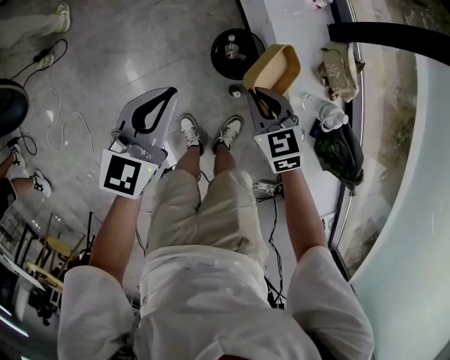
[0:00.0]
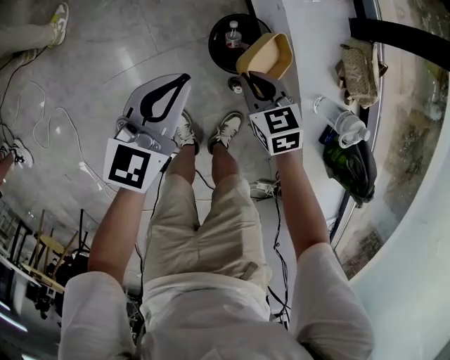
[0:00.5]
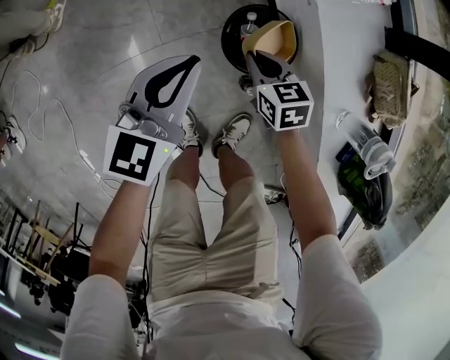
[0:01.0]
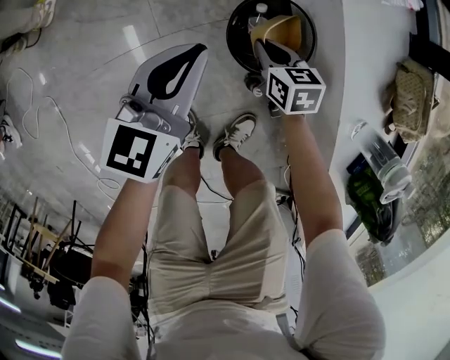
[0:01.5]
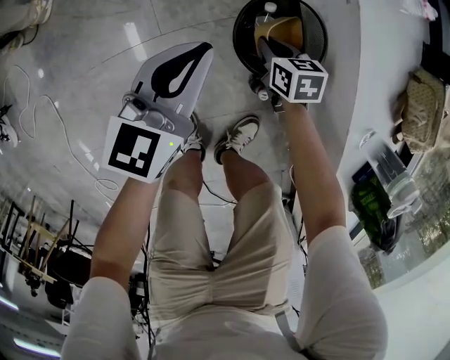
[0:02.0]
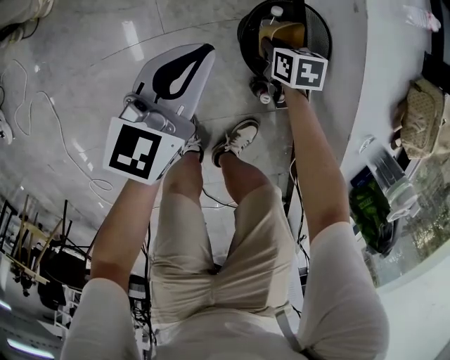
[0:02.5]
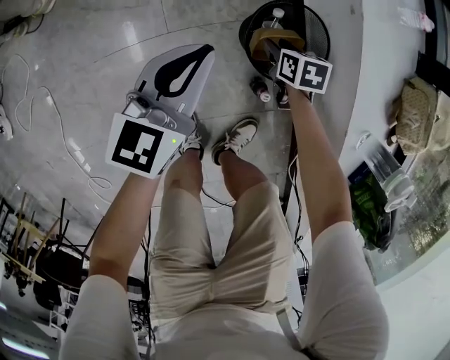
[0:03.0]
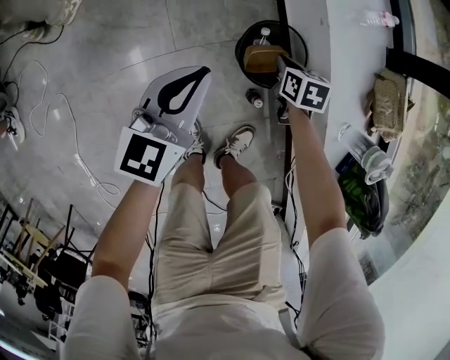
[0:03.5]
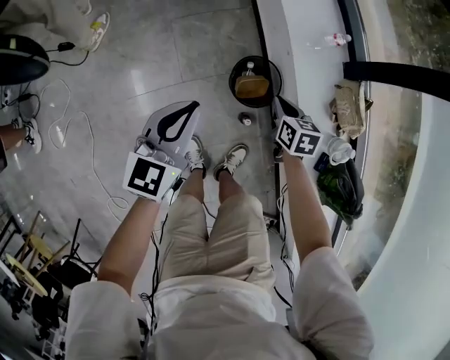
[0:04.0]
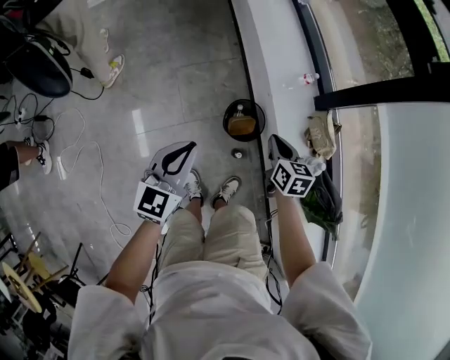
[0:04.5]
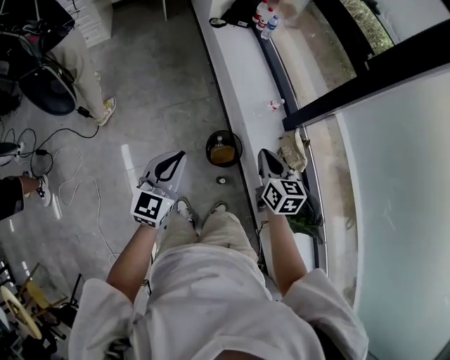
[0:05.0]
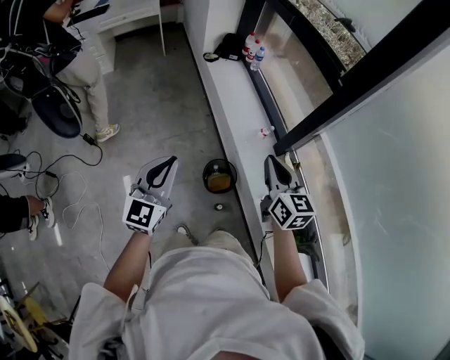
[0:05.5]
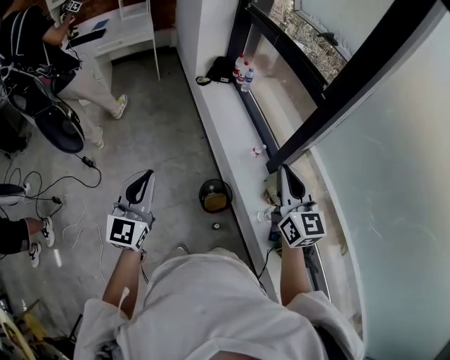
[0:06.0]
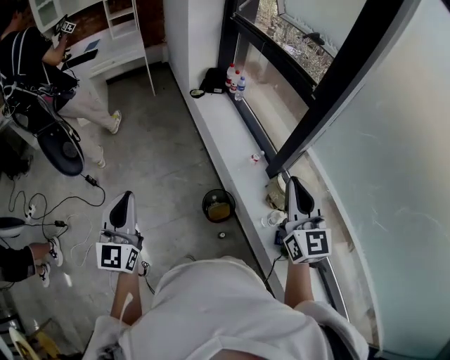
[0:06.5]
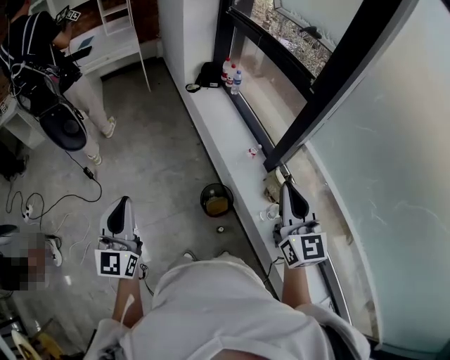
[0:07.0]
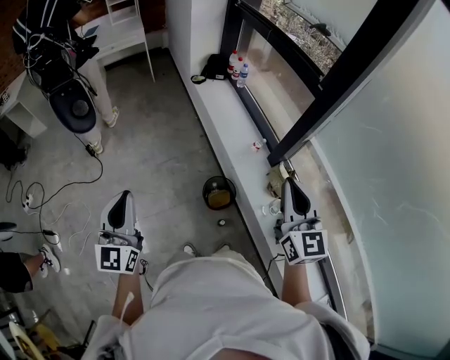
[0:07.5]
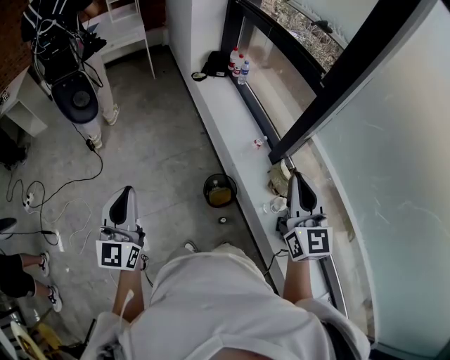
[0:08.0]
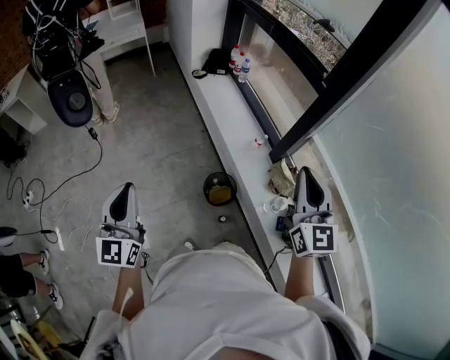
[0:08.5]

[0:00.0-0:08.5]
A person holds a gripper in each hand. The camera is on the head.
0.0 to 2.0 s: The two grippers go about 35 cm downward. The right gripper swivels about 30 degrees.
2.0 to 4.0 s: The grippers both shift upward by some 30 cm. The right gripper opens, then closes once more.
4.0 to 6.5 s: The right gripper is displaced upward by some 60 cm, and points its fingers roughly 50 degrees further upward, while the left gripper is displaced upward by roughly 40 cm, and changes its angle by roughly 30 degrees.
6.5 to 8.5 s: The grippers make only small movements.

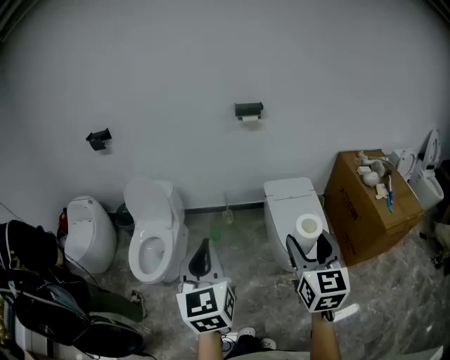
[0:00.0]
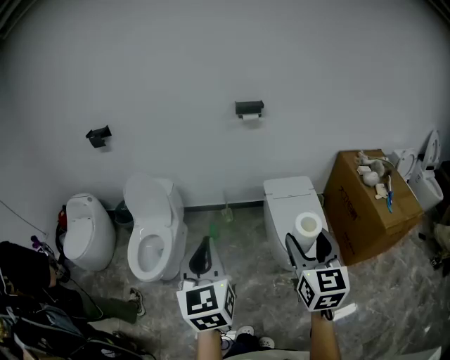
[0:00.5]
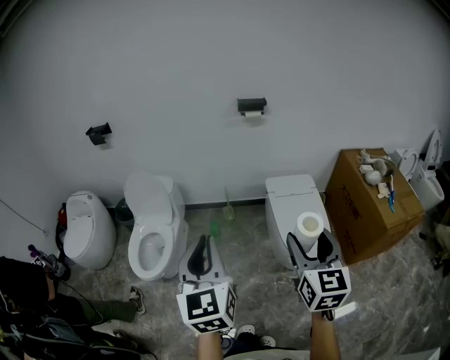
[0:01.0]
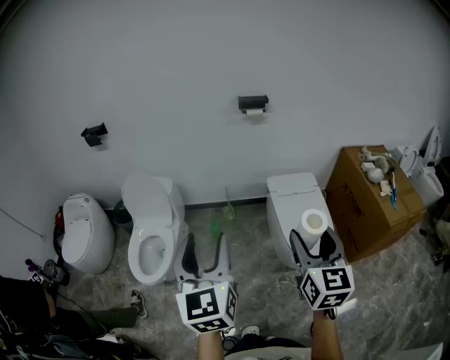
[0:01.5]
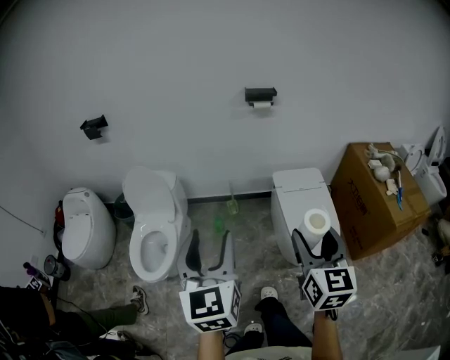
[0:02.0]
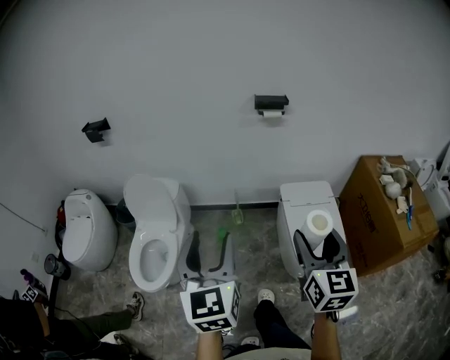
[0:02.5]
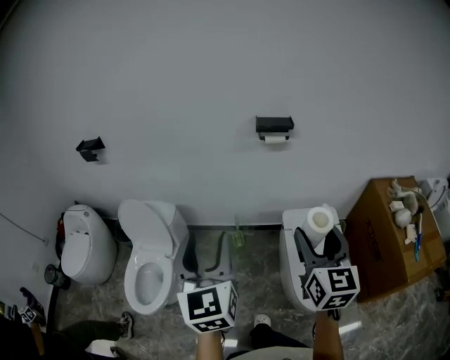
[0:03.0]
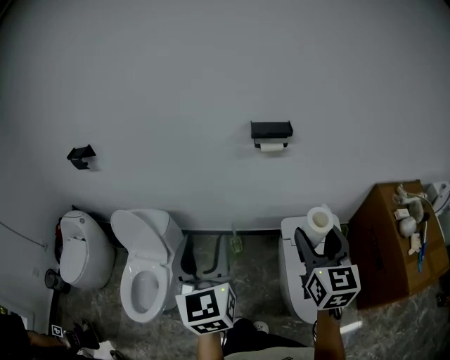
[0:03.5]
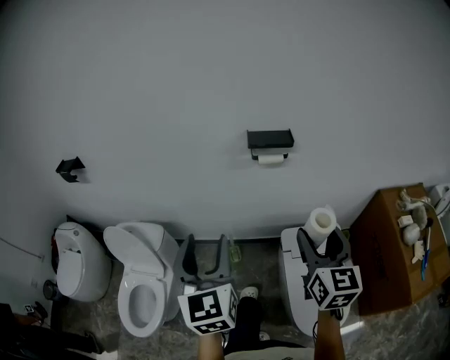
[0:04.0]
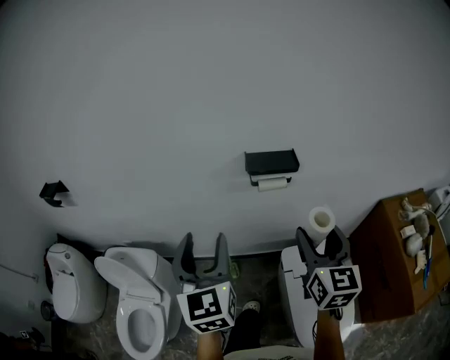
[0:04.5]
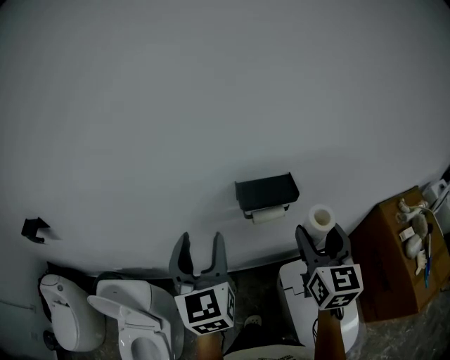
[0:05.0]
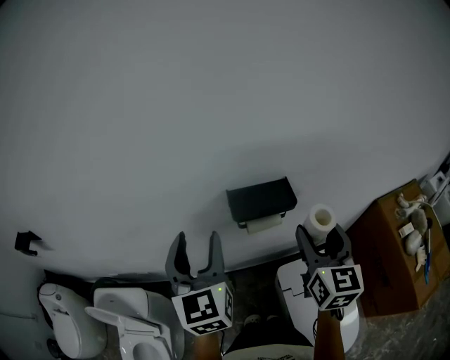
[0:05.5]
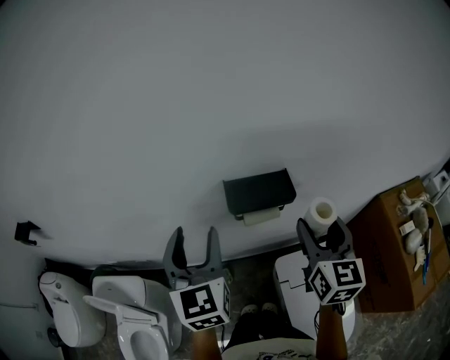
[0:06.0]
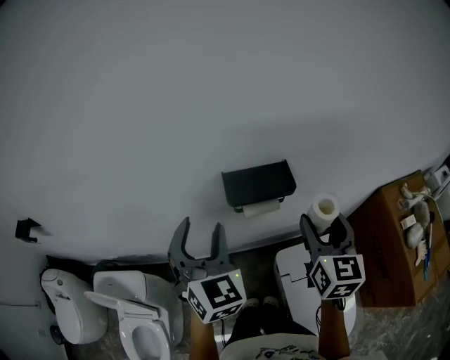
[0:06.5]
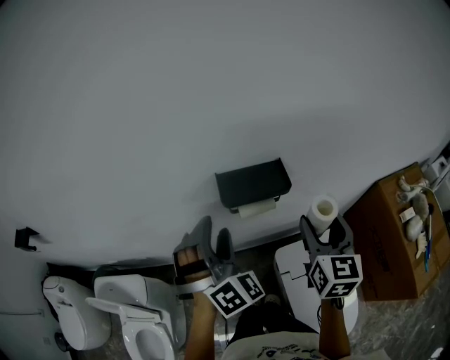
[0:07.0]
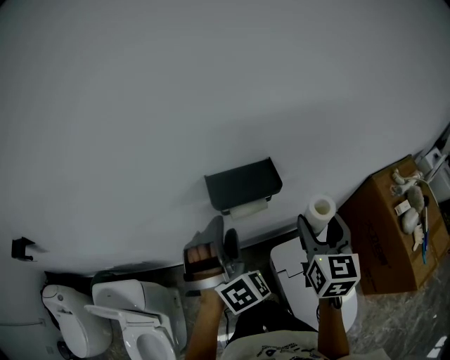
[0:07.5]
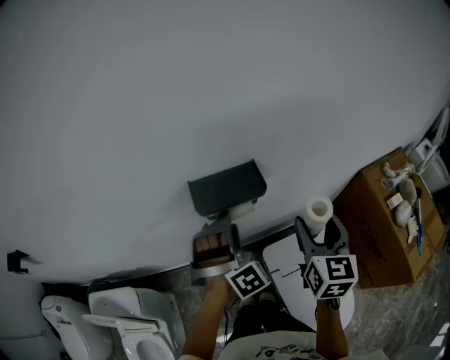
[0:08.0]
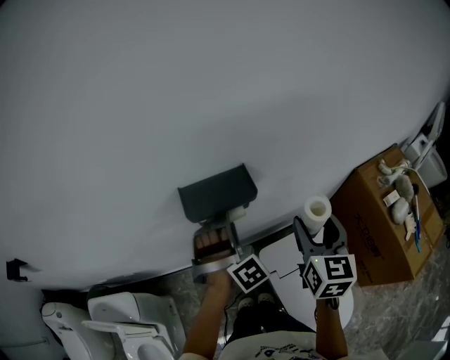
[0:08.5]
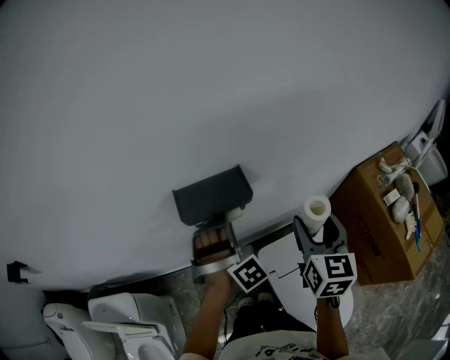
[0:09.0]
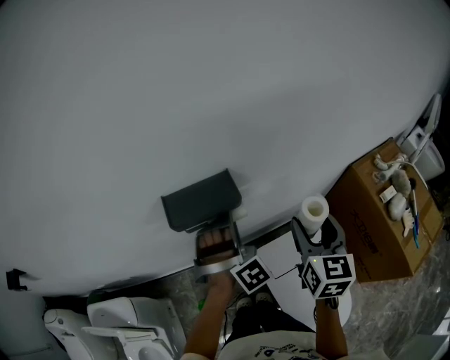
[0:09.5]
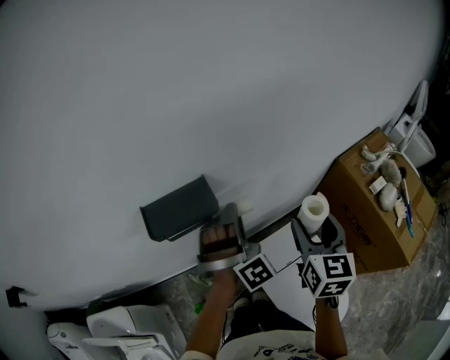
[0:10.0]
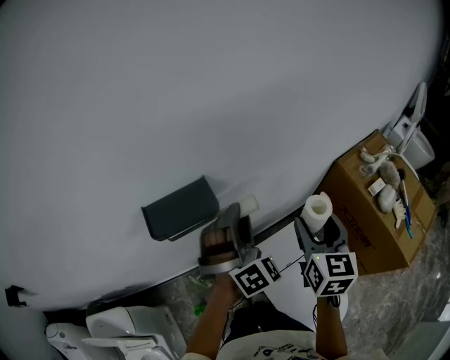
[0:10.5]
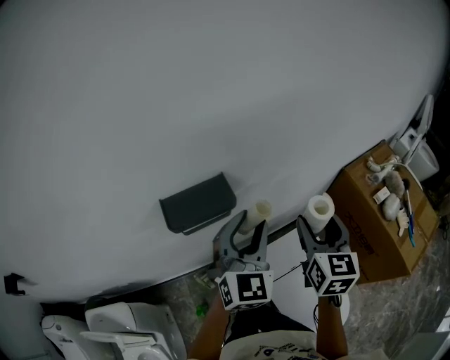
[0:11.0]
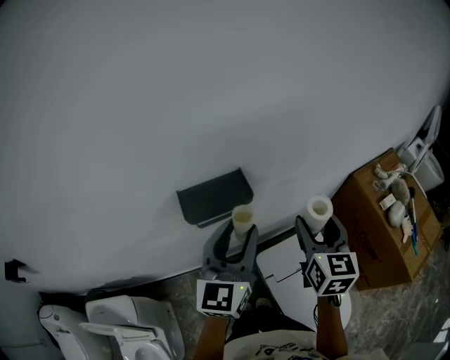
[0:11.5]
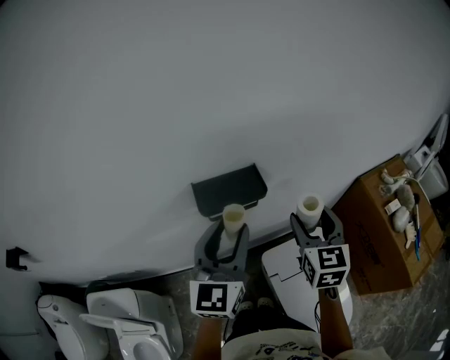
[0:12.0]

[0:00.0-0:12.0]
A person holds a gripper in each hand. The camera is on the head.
0.0 to 2.0 s: The grippers both shift forward by roughly 10 cm. The left gripper opens.
2.0 to 4.0 s: Both grippers are carried forward, roughly 50 cm.
4.0 to 6.0 s: Both grippers travel together forward, about 30 cm.
6.0 to 8.0 s: The left gripper heads to the right and downward, covering roughly 20 cm, and rotates around the line of its fingers by approximately 80 degrees, clockwise from behind, while the right gripper goes some 5 cm to the right.
8.0 to 10.0 s: Both grippers move to the right, about 10 cm.
10.0 to 12.0 s: The right gripper goes some 10 cm to the left, while the left gripper is displaced to the left, backward and upward by approximately 20 cm, and rotates around the line of its fingers by some 80 degrees, counterclockwise from behind.

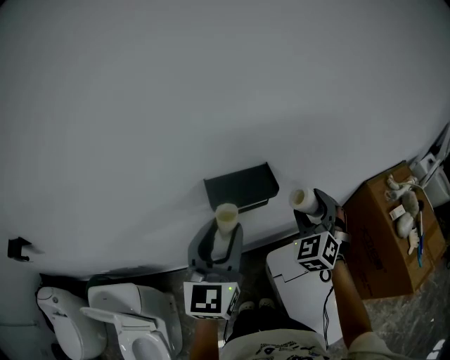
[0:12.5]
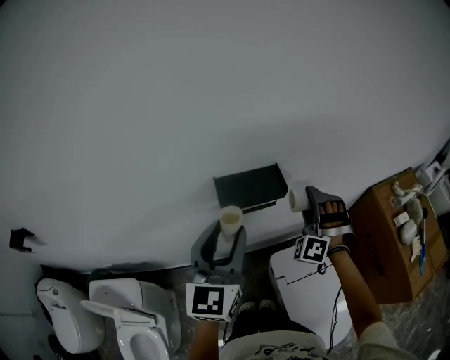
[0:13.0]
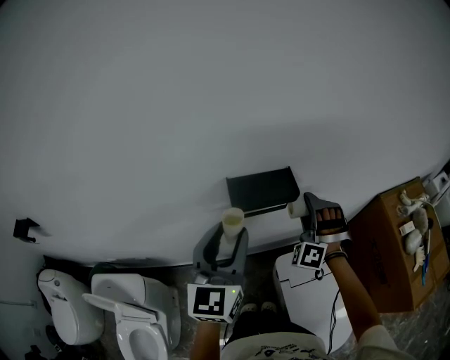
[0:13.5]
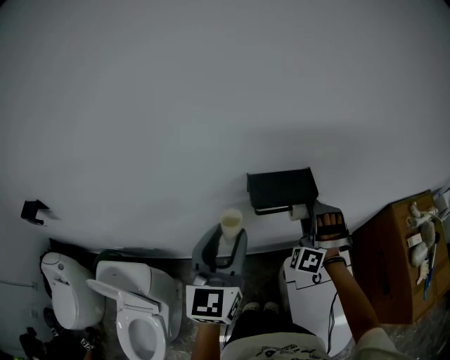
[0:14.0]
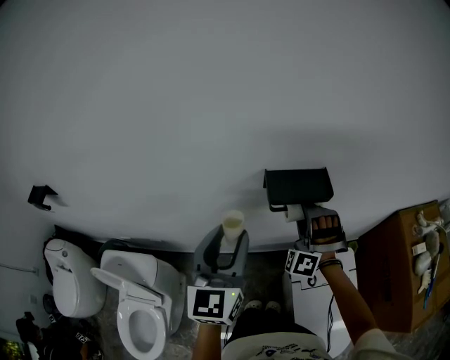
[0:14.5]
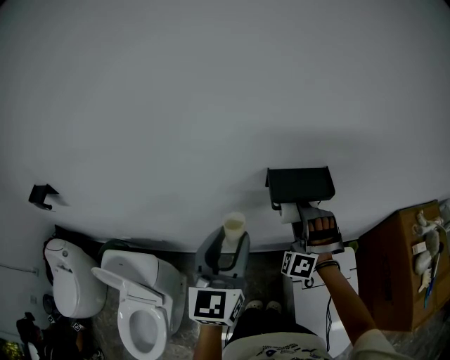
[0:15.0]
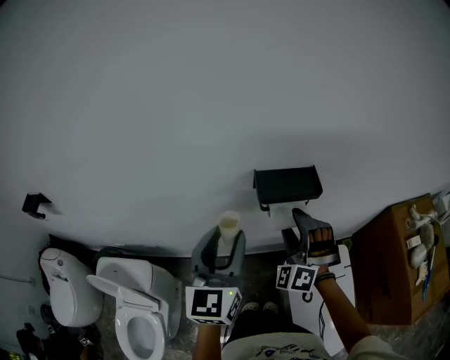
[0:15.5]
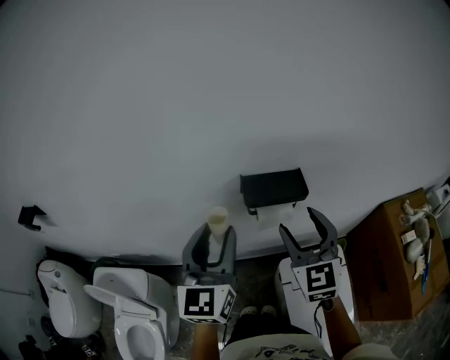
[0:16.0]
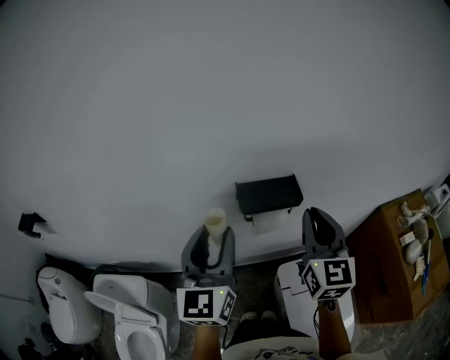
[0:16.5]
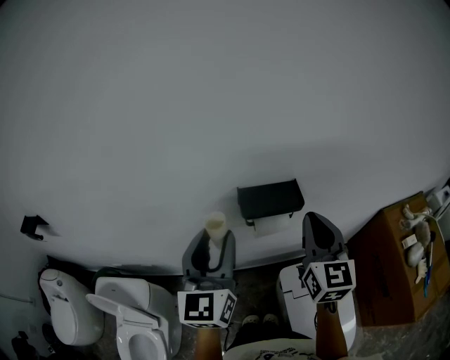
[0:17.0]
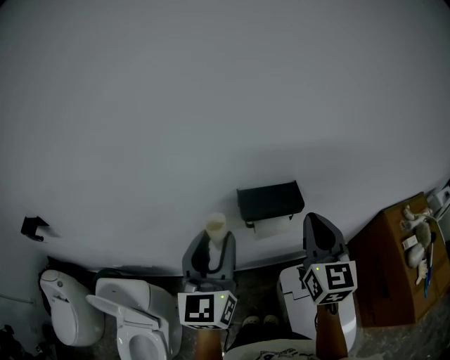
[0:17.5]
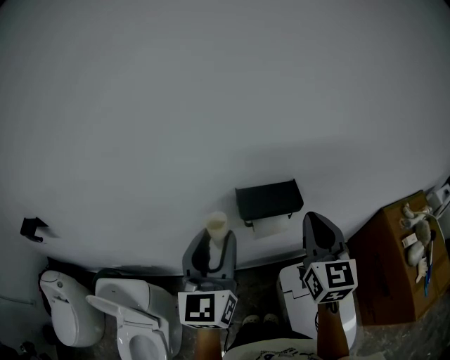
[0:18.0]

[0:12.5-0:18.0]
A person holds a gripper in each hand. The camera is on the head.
12.5 to 14.5 s: The left gripper moves to the left and backward, roughly 15 cm. Meanwhile the right gripper moves to the left, roughly 20 cm, and twists approximately 40 degrees counterclockwise, seen from behind.
14.5 to 16.0 s: The right gripper is displaced upward and backward by approximately 15 cm, and rolls clockwise, seen from behind, by some 70 degrees.
16.0 to 18.0 s: The right gripper ends up roughly 5 cm from where it was, changes its angle by some 20 degrees, and closes.

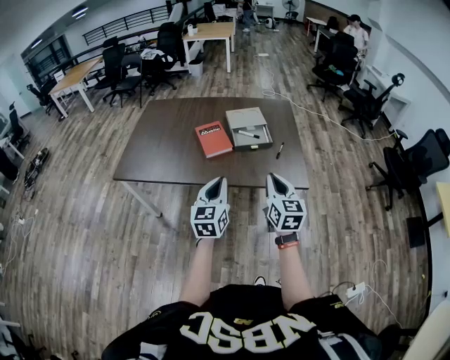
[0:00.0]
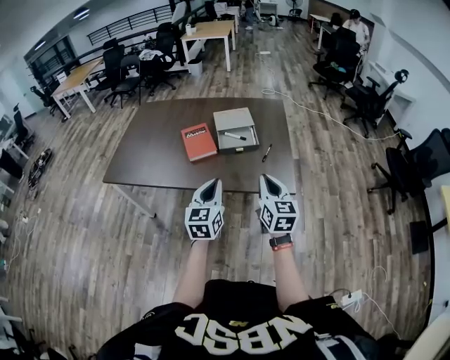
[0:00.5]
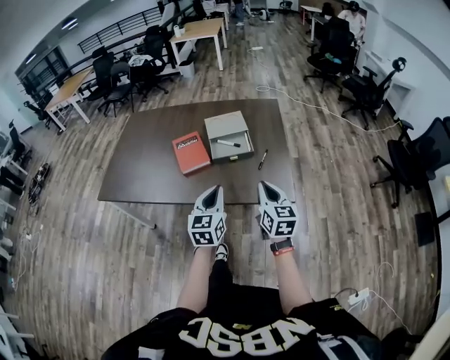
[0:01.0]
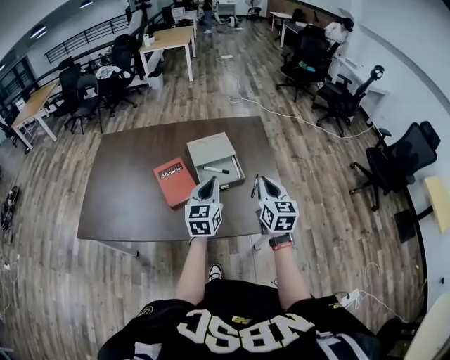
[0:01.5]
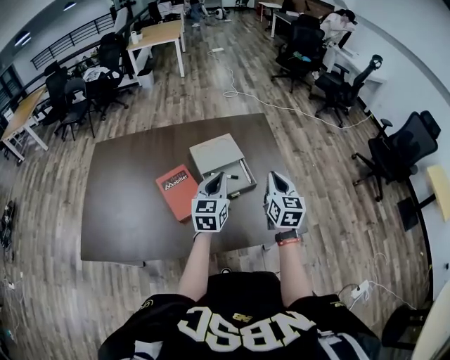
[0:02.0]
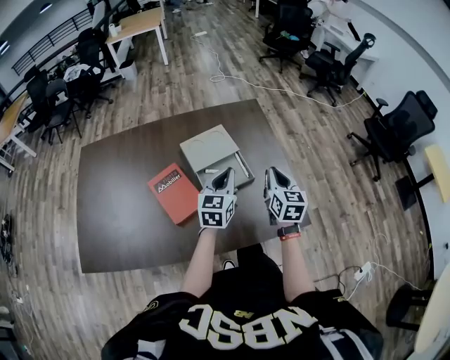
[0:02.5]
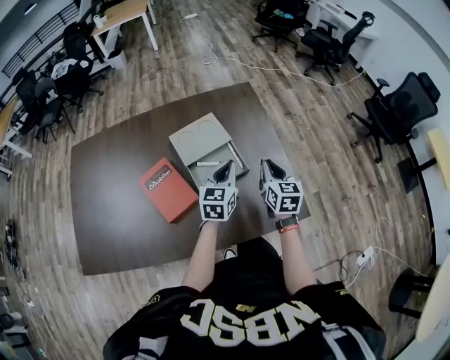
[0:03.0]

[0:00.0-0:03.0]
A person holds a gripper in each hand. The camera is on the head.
0.0 to 1.5 s: The right gripper goes approximately 25 cm forward and to the right. The left gripper travels forward by some 30 cm.
1.5 to 3.0 s: Both grippers move forward and downward, some 15 cm. The left gripper turns by approximately 20 degrees.
